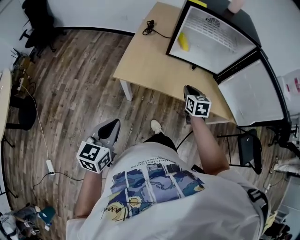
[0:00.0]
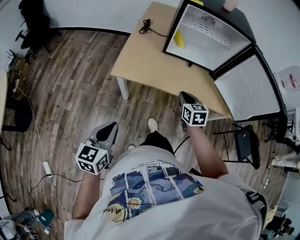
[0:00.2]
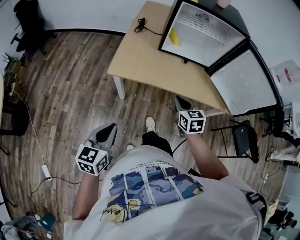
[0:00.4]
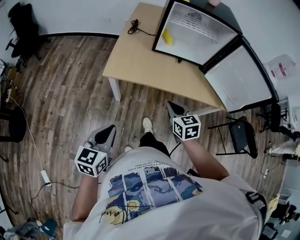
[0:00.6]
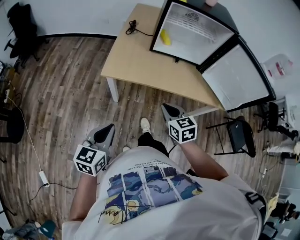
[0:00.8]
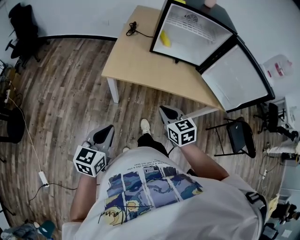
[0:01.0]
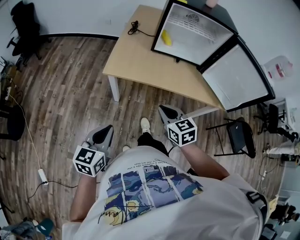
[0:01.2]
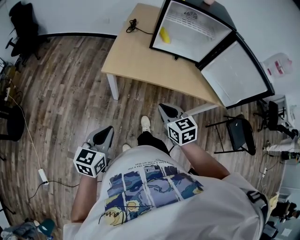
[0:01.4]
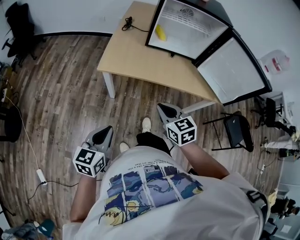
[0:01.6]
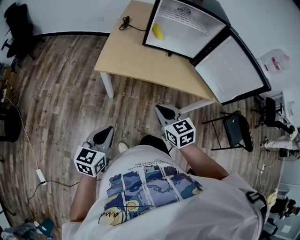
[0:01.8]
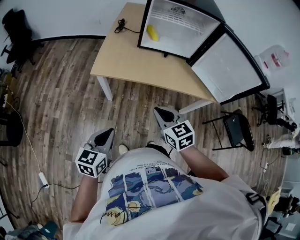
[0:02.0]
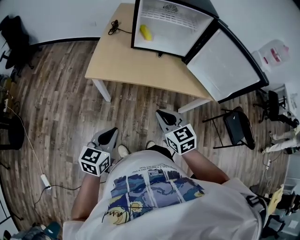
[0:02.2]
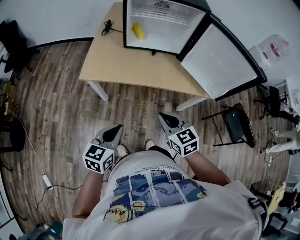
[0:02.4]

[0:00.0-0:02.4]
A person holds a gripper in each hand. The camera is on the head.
0:00.0 to 0:01.2: The right gripper travels backward and to the left by about 20 cm; the left gripper travels backward by some 10 cm.
0:01.2 to 0:02.4: The two grippers go approximately 15 cm to the right.

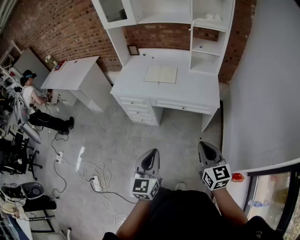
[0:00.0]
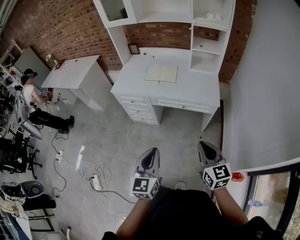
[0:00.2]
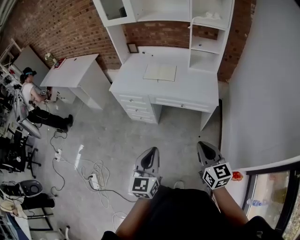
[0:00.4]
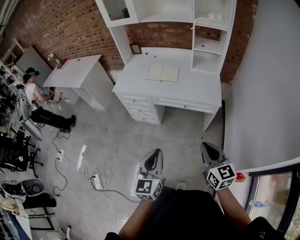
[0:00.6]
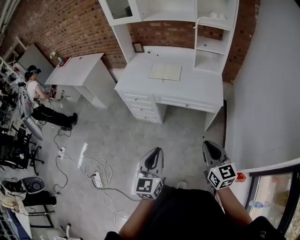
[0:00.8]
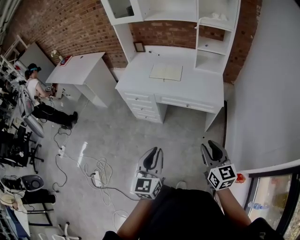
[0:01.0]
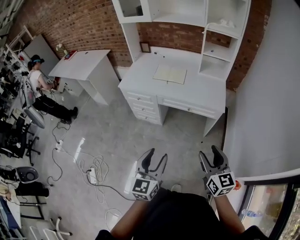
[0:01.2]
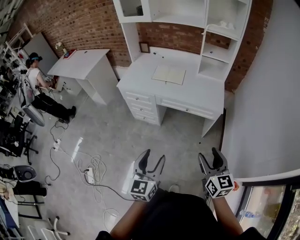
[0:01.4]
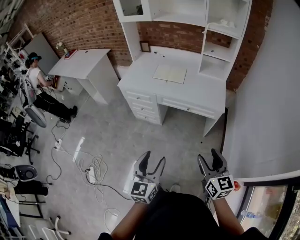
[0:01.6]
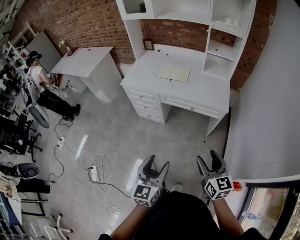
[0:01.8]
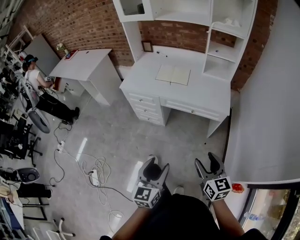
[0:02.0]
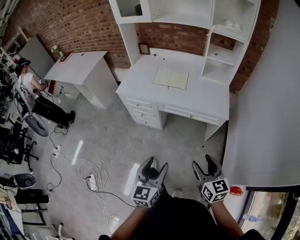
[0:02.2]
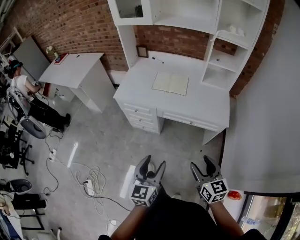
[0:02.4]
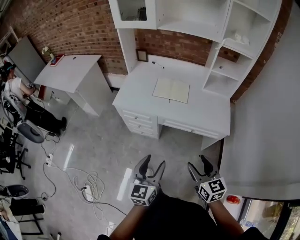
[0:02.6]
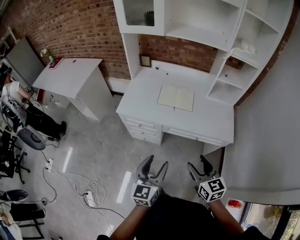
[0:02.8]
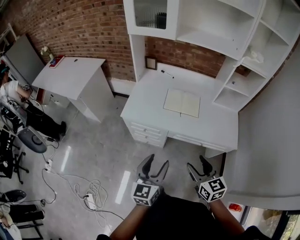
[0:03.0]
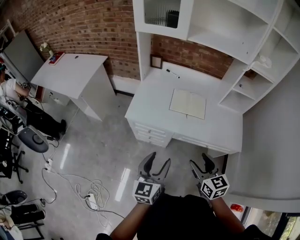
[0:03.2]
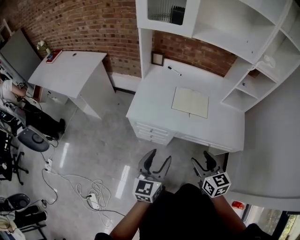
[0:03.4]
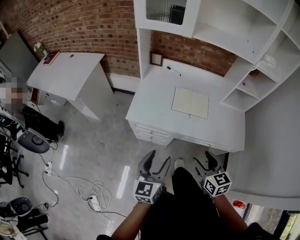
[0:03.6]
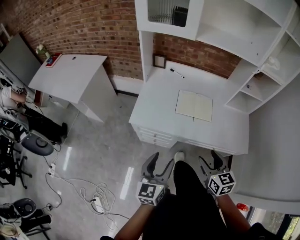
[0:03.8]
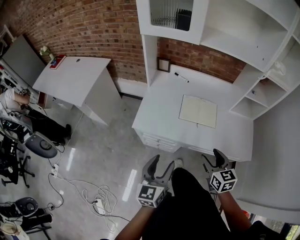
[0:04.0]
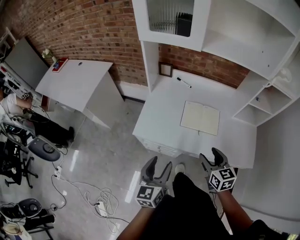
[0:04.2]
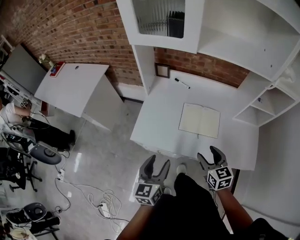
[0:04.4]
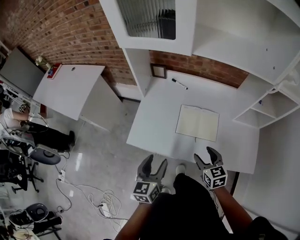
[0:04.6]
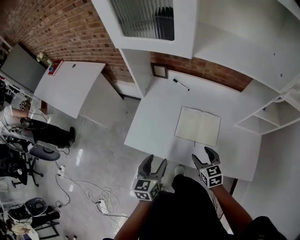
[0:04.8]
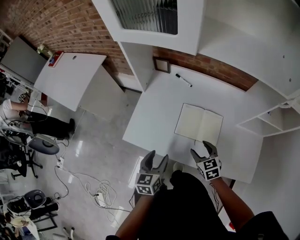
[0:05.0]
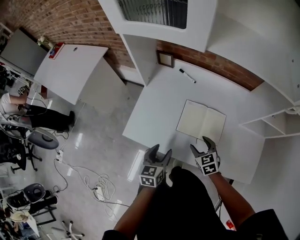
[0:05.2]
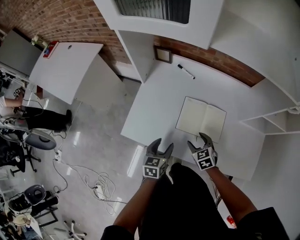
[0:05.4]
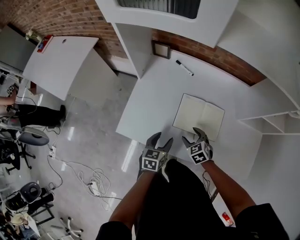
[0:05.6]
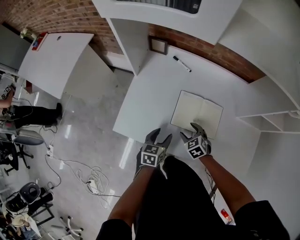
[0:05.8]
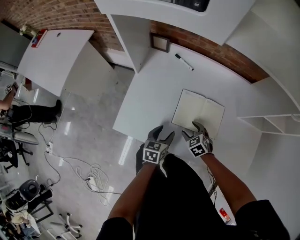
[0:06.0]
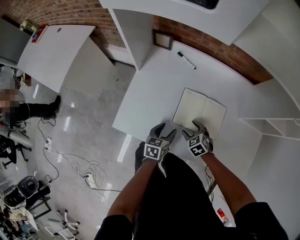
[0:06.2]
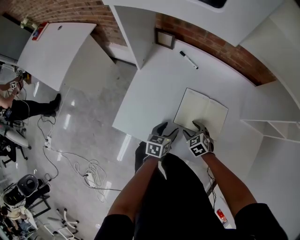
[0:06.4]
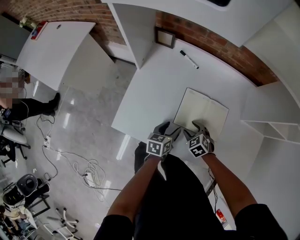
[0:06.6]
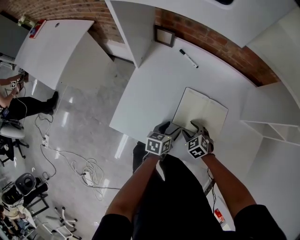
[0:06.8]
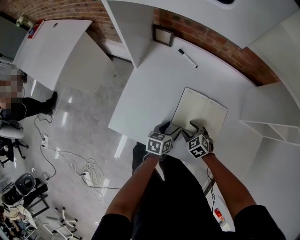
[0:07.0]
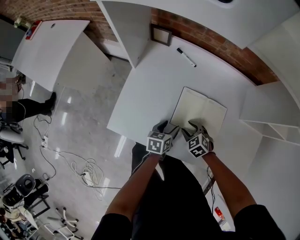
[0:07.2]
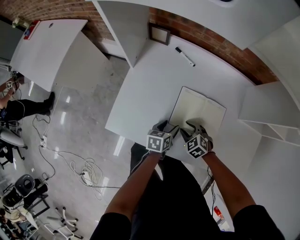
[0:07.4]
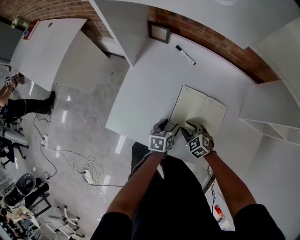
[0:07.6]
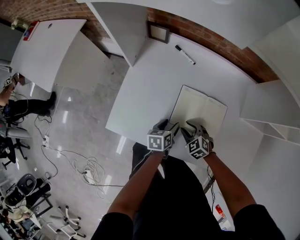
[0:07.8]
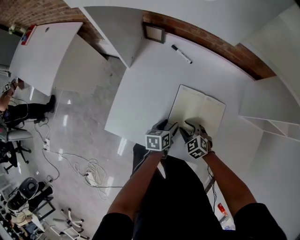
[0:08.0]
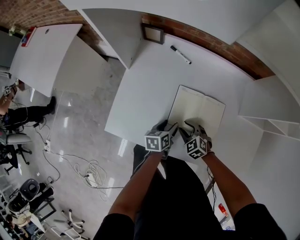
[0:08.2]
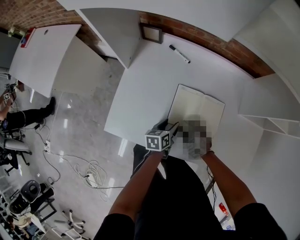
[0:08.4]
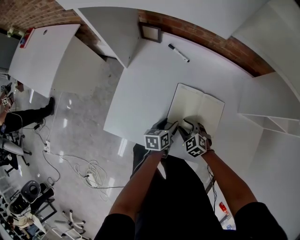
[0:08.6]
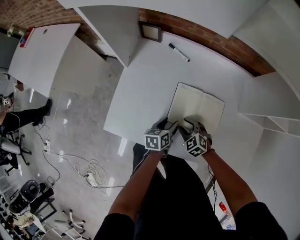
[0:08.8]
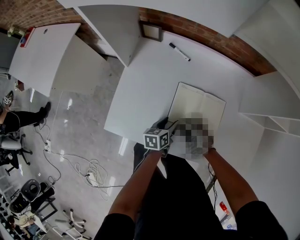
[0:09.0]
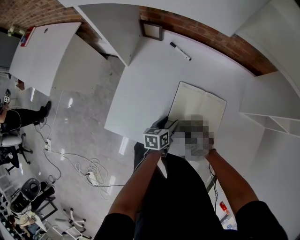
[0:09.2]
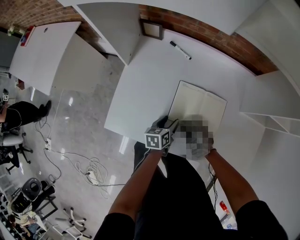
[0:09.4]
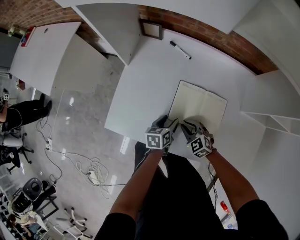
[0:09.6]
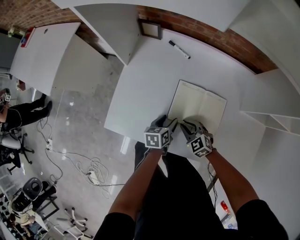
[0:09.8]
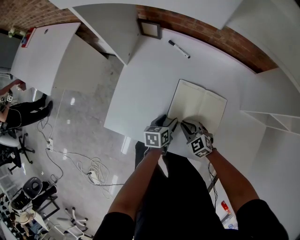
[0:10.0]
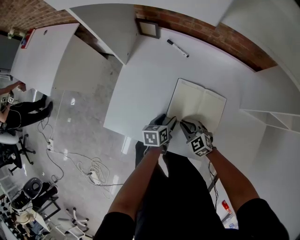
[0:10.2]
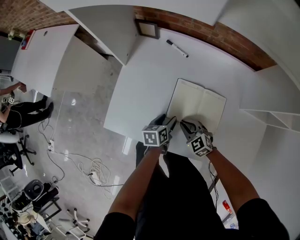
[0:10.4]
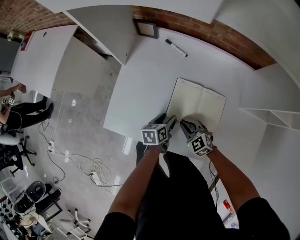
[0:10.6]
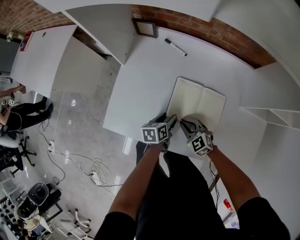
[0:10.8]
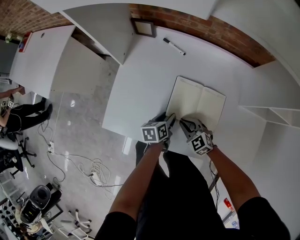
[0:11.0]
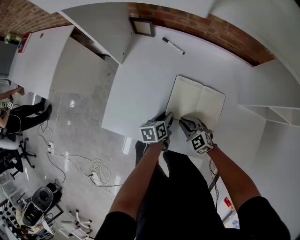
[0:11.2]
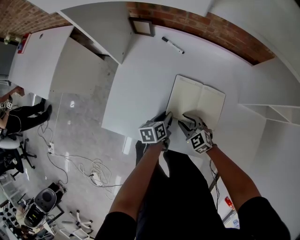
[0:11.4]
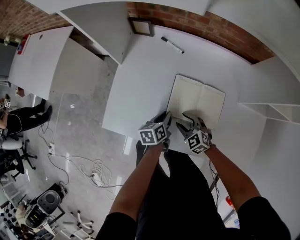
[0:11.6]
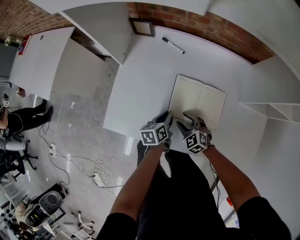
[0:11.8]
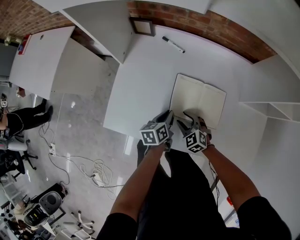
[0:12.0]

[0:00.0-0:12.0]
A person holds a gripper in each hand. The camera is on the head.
0:00.0 to 0:01.6: The right gripper ends up some 5 cm from where it was, and opens; the left gripper shifts by some 5 cm, and opens.
0:01.6 to 0:03.0: Both grippers move forward and to the left, some 40 cm.
0:03.0 to 0:04.4: Both grippers move forward, roughly 25 cm.
0:04.4 to 0:06.0: Both grippers travel together downward and forward, some 30 cm. The left gripper turns by roughly 30 degrees; the right gripper rotates about 40 degrees.
0:06.0 to 0:07.6: The right gripper closes up. Meanwhile the left gripper shifts approximately 5 cm downward.
0:07.6 to 0:10.4: The grippers make only small movements.
0:10.4 to 0:12.0: The right gripper opens up, while the left gripper closes up.

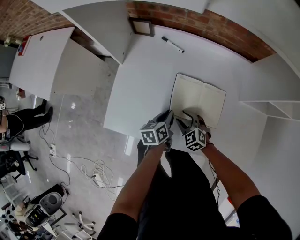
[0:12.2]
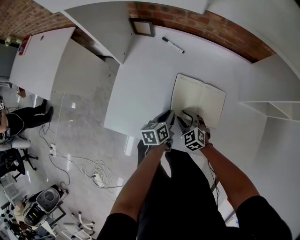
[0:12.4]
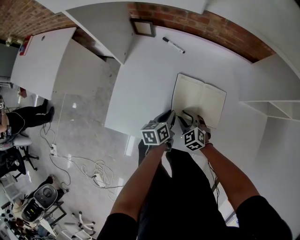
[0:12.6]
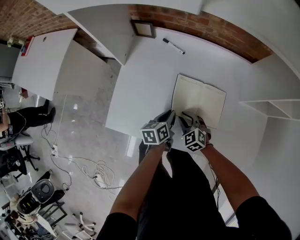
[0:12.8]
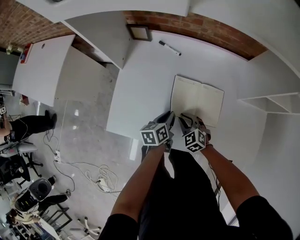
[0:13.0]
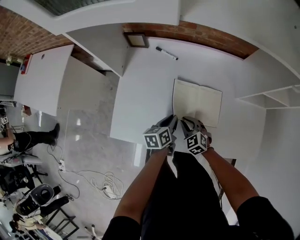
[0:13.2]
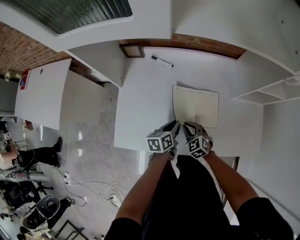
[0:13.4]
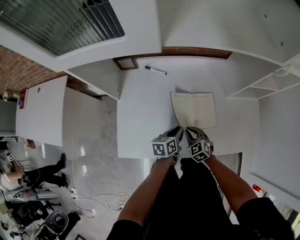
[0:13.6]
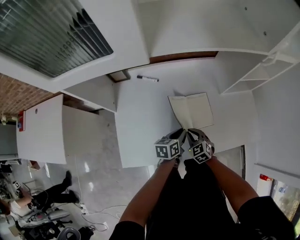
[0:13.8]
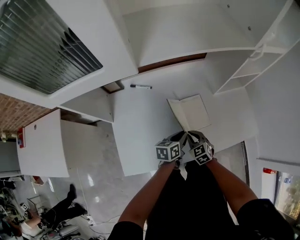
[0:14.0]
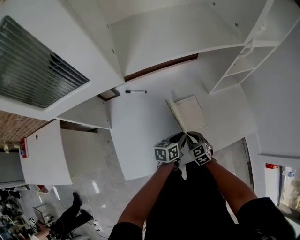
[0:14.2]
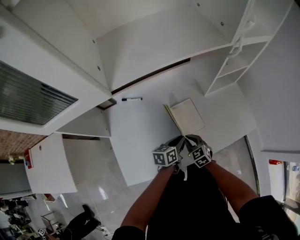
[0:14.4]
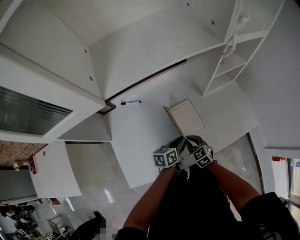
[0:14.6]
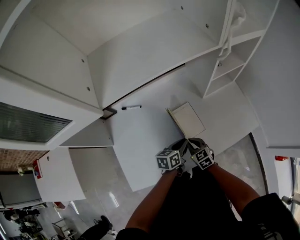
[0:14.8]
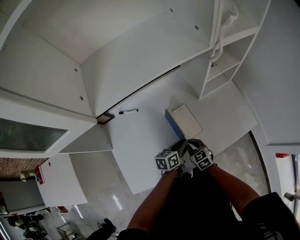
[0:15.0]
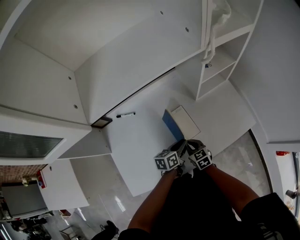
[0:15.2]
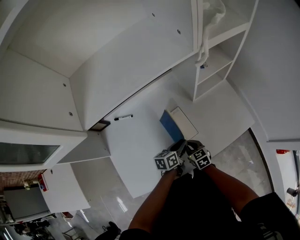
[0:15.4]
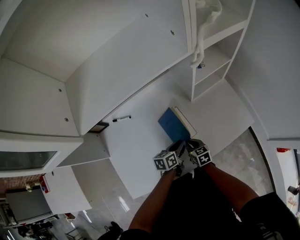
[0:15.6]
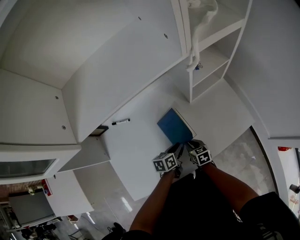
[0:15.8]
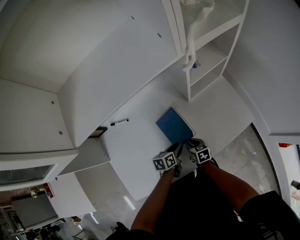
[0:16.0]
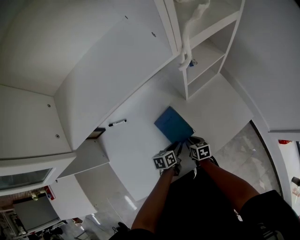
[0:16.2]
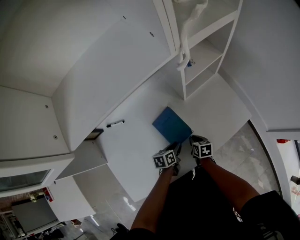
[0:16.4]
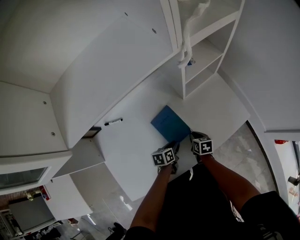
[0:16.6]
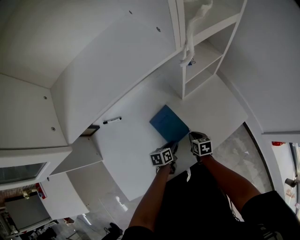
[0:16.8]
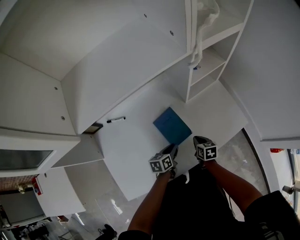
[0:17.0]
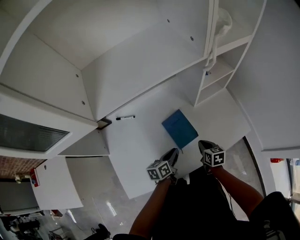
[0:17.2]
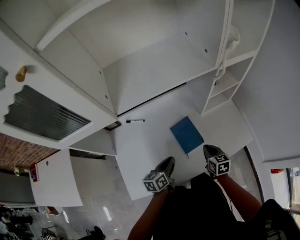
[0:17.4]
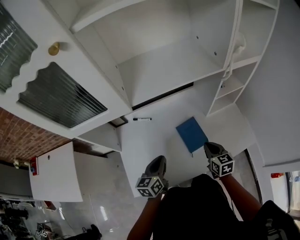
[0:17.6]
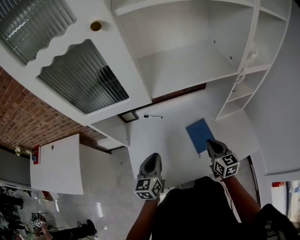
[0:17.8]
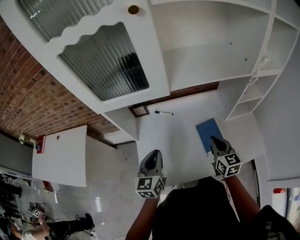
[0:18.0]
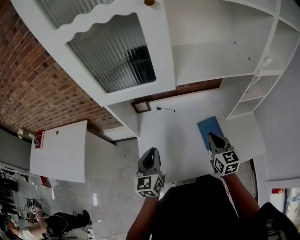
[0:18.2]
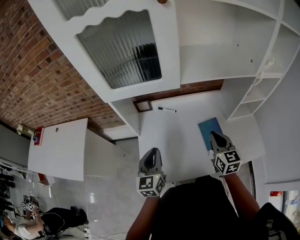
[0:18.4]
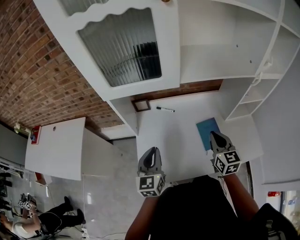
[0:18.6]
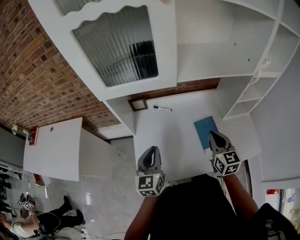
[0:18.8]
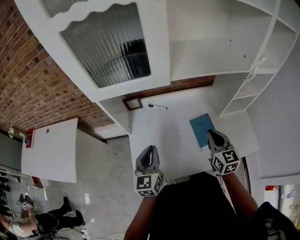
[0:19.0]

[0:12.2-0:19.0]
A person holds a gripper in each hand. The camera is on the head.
0:12.2 to 0:13.6: The left gripper heads upward, covering roughly 5 cm, and rotates approximately 20 degrees; the right gripper moves approximately 5 cm, swivels about 20 degrees, and closes.
0:13.6 to 0:15.0: Both grippers travel together to the right, roughly 10 cm. The right gripper swivels about 30 degrees; the left gripper swivels about 20 degrees.
0:15.0 to 0:16.2: The left gripper shifts roughly 10 cm downward; the right gripper heads downward and to the right, covering roughly 10 cm, and changes its angle by some 40 degrees.
0:16.2 to 0:17.6: The left gripper travels upward, to the left and backward by roughly 30 cm, and swivels about 40 degrees. Meanwhile the right gripper shifts approximately 25 cm upward, and changes its angle by about 30 degrees.
0:17.6 to 0:19.0: The grippers both shift to the left and upward by about 15 cm. The left gripper turns by approximately 30 degrees.

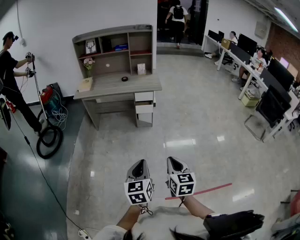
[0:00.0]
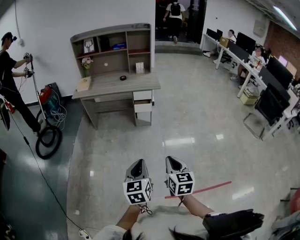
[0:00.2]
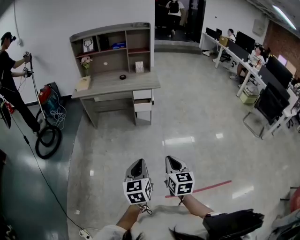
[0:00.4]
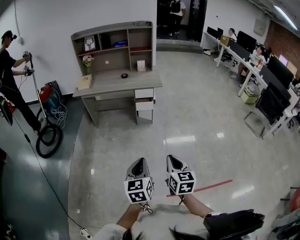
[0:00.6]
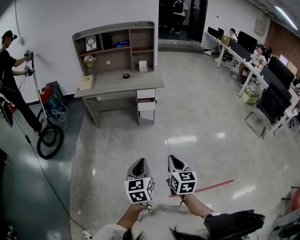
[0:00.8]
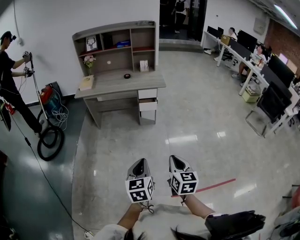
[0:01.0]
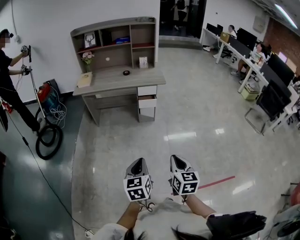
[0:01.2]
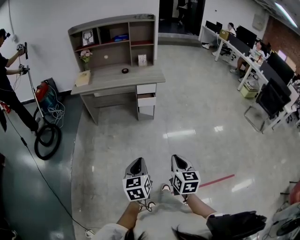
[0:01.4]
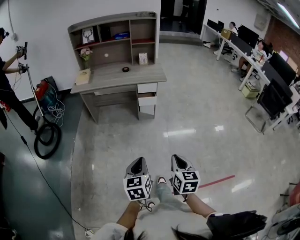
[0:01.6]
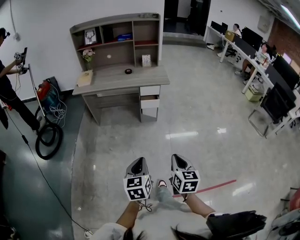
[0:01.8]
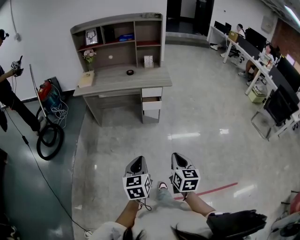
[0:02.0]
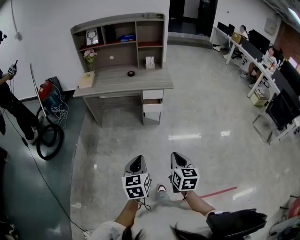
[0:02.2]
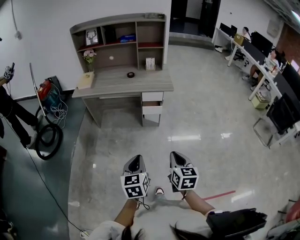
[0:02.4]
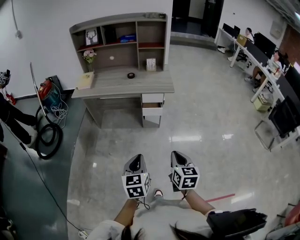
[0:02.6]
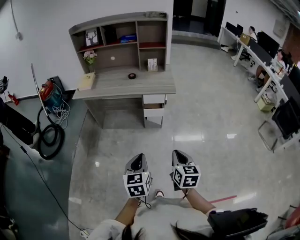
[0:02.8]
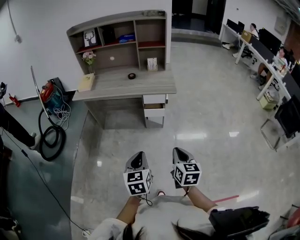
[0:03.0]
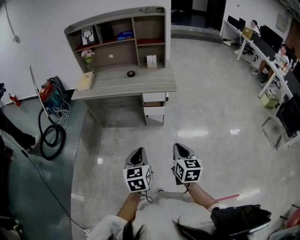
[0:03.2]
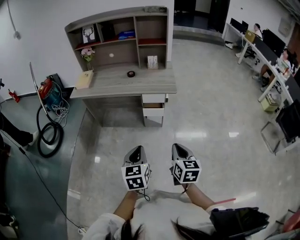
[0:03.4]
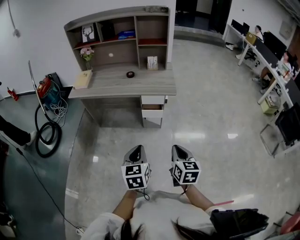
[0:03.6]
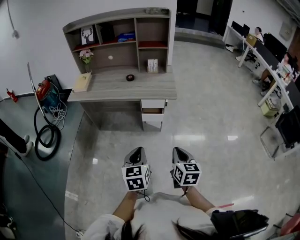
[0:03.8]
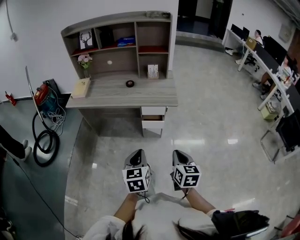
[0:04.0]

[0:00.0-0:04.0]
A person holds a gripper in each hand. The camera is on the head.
0:00.0 to 0:01.4: The left gripper heads to the left, covering about 10 cm. The right gripper is displaced to the left by approximately 5 cm.
0:01.4 to 0:02.6: The two grippers go about 20 cm forward.
0:02.6 to 0:04.0: Both grippers travel together forward, about 20 cm.
